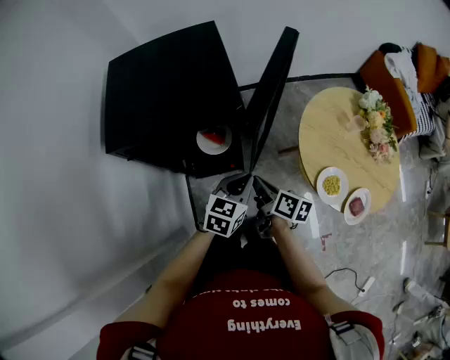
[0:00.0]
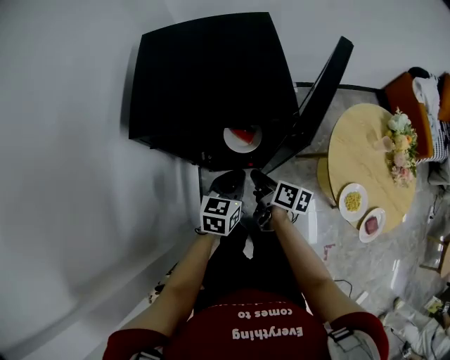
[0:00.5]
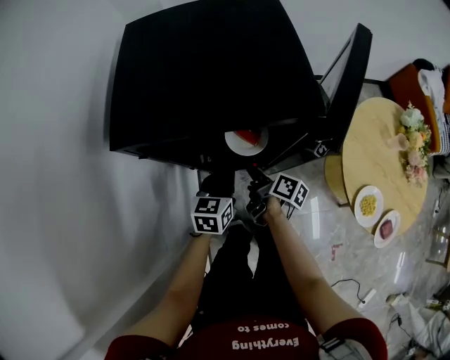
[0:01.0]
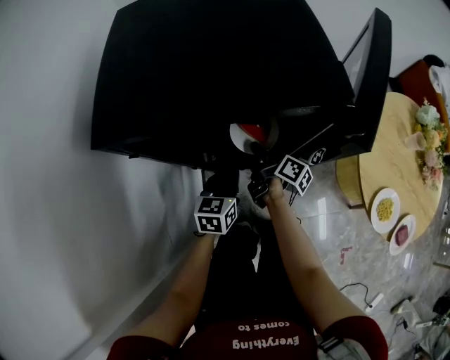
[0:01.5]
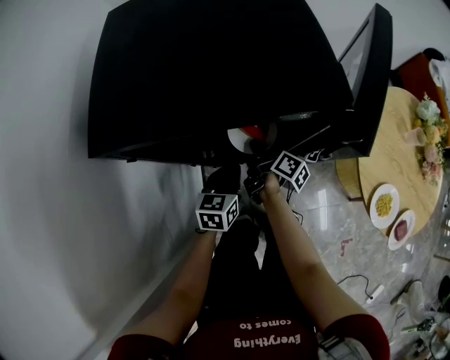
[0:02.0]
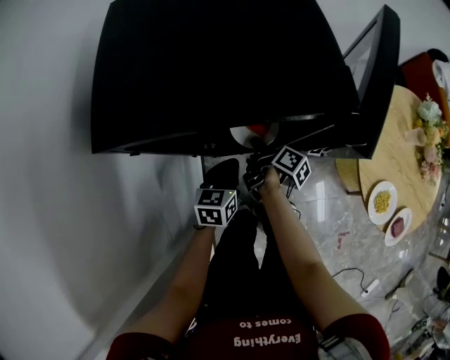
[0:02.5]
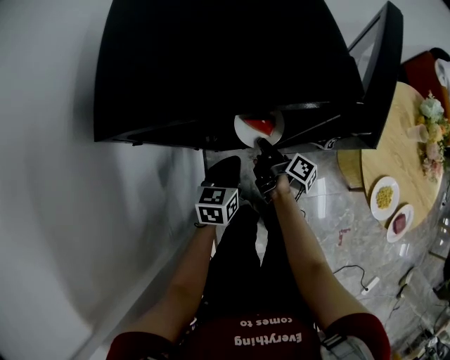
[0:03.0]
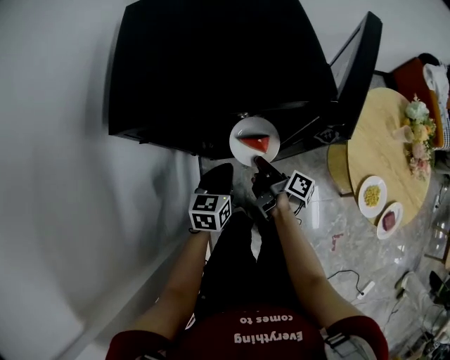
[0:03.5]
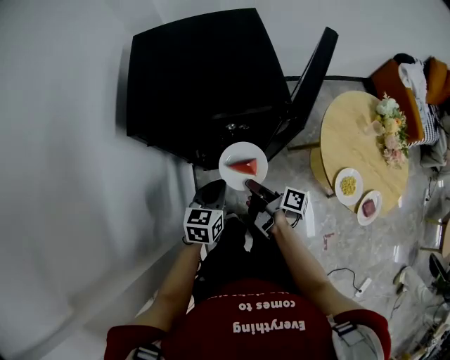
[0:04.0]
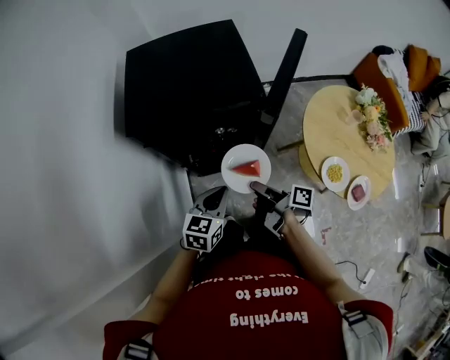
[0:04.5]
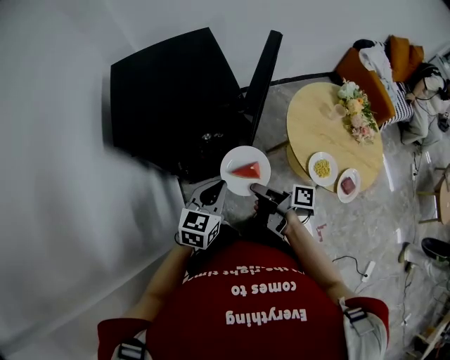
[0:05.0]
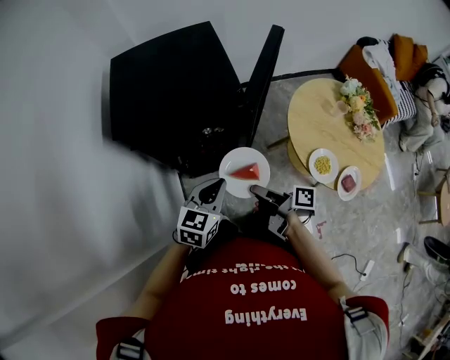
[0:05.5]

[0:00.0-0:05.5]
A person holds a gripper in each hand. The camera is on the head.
0:00.0 to 0:02.0: The left gripper moves approximately 25 cm, and changes its angle by approximately 20 degrees.
0:02.0 to 0:03.5: The left gripper travels upward by about 5 cm.
0:03.5 to 0:05.5: The left gripper goes roughly 20 cm upward, and turns by about 20 degrees.

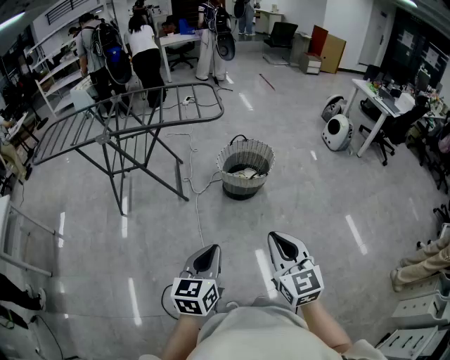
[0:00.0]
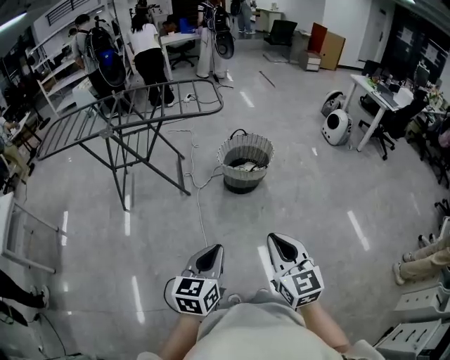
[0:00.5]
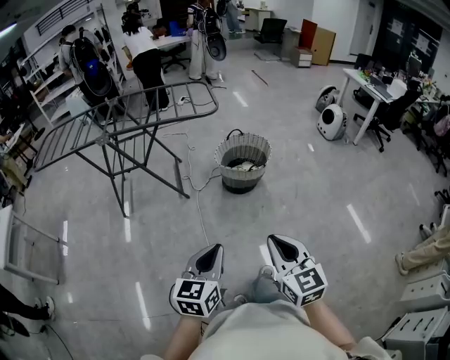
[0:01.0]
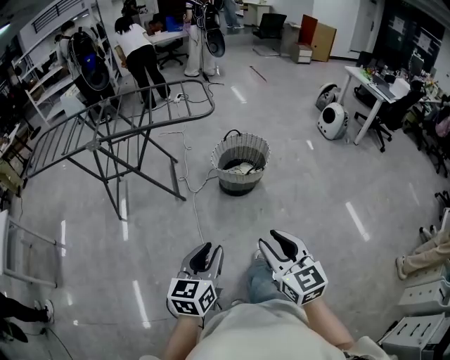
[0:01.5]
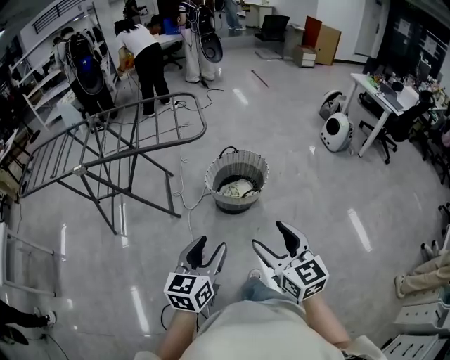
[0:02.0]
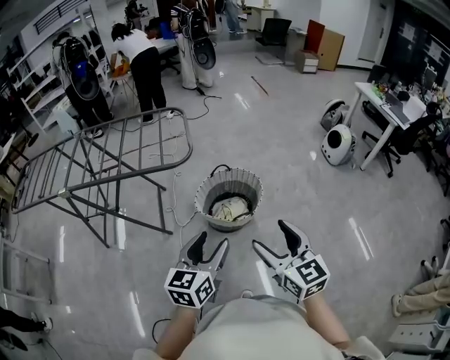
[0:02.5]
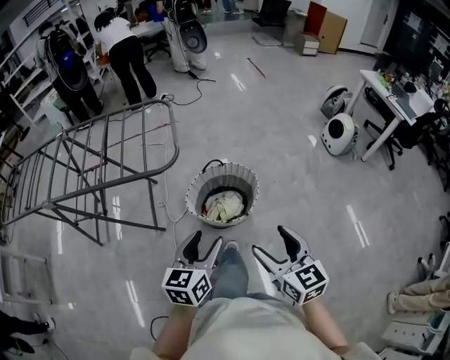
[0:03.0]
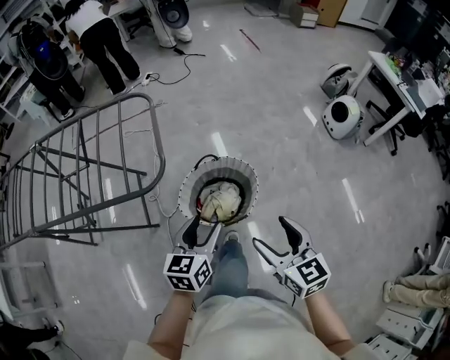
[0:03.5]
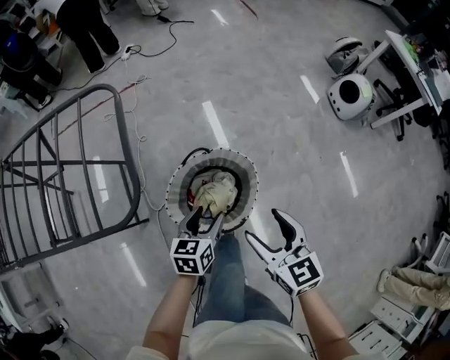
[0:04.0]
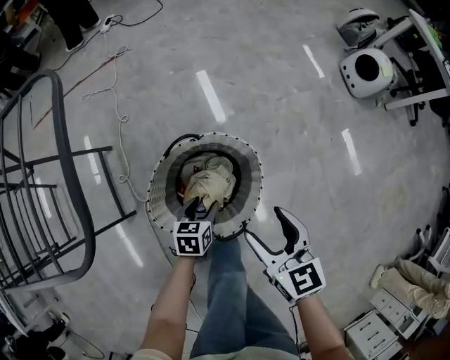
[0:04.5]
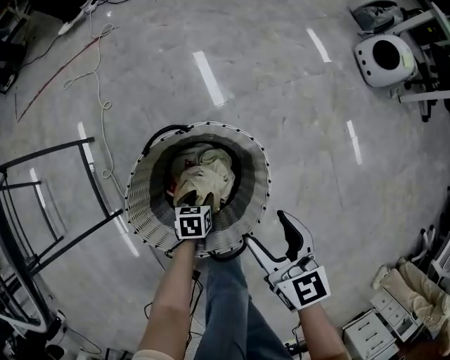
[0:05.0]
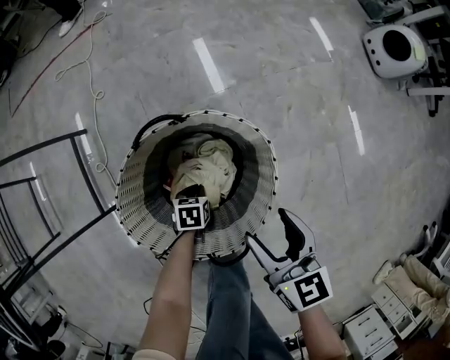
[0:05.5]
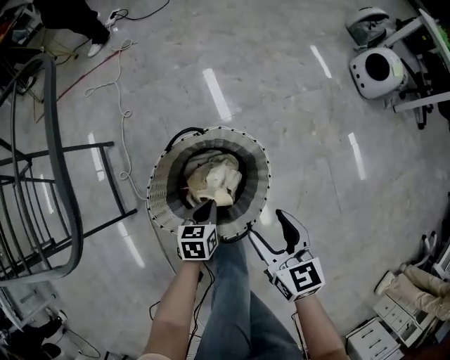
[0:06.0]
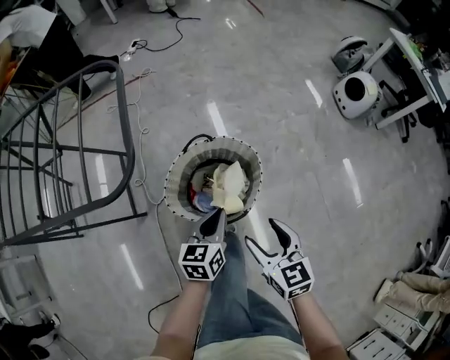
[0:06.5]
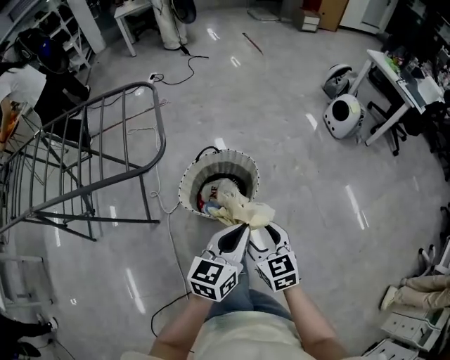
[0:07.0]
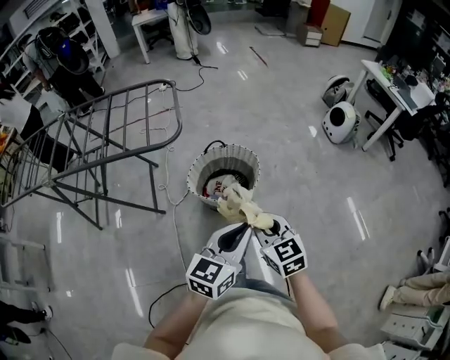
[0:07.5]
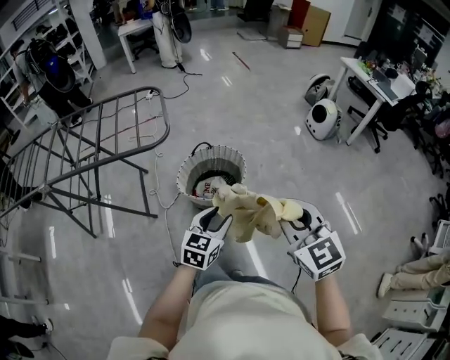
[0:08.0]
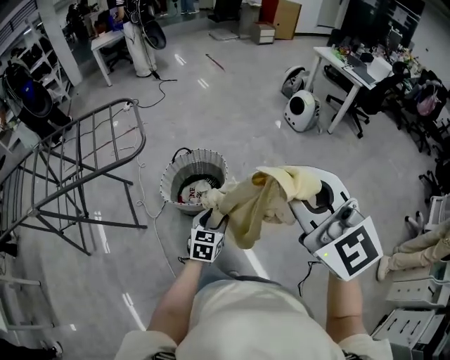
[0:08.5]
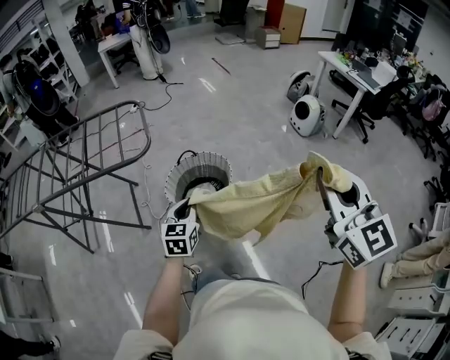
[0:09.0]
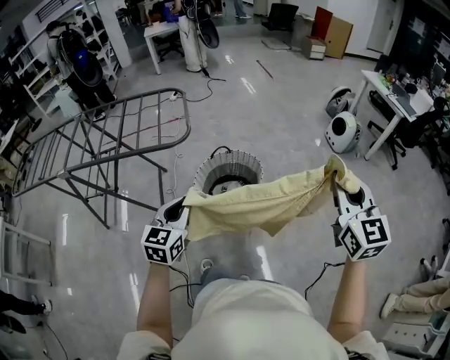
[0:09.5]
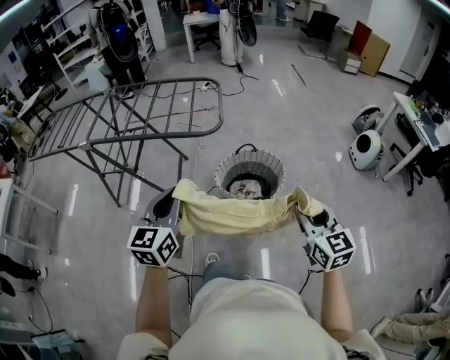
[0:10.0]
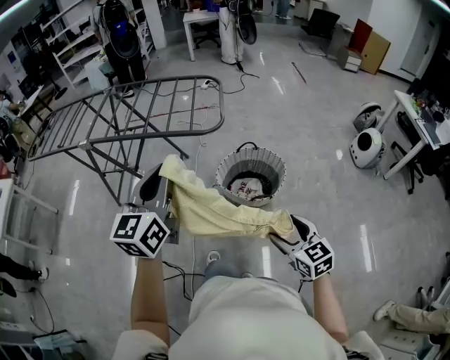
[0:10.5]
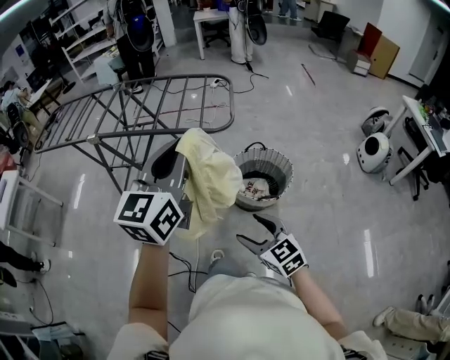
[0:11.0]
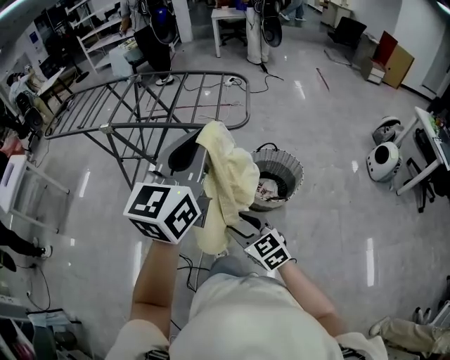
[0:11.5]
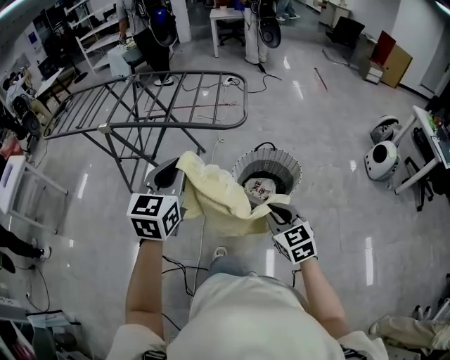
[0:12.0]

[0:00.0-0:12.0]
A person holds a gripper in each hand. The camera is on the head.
0:00.0 to 0:02.0: Both grippers move forward, roughly 20 cm. The right gripper opens up. The left gripper opens.
0:02.0 to 0:04.0: Both grippers are carried forward, approximately 50 cm. The left gripper is displaced downward by about 25 cm, and changes its angle by approximately 20 degrees.
0:04.0 to 0:06.0: Both grippers travel together downward, about 25 cm. The left gripper closes its fingers.
0:06.0 to 0:08.0: The grippers both shift upward and backward by about 50 cm. The right gripper changes its angle by about 40 degrees, and closes its fingers; the left gripper rotates some 40 degrees, and opens its fingers.
0:08.0 to 0:10.0: The left gripper shifts roughly 25 cm to the left and upward, swivels about 40 degrees, and closes. The right gripper reaches some 15 cm upward, then returns.
0:10.0 to 0:12.0: The right gripper moves to the left and downward, about 15 cm, turns by approximately 20 degrees, and opens, then closes again. The left gripper travels upward and back again, some 15 cm each way.

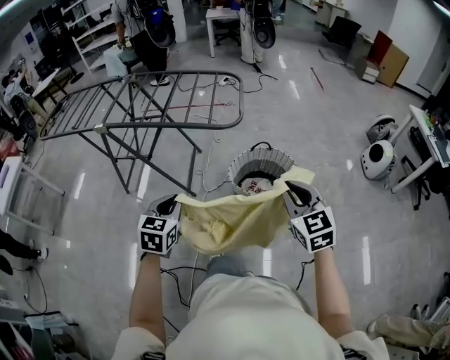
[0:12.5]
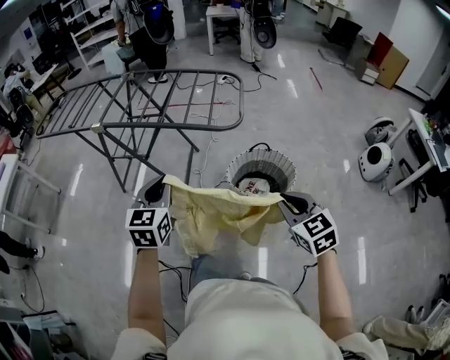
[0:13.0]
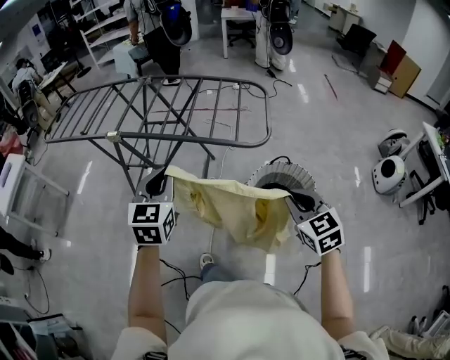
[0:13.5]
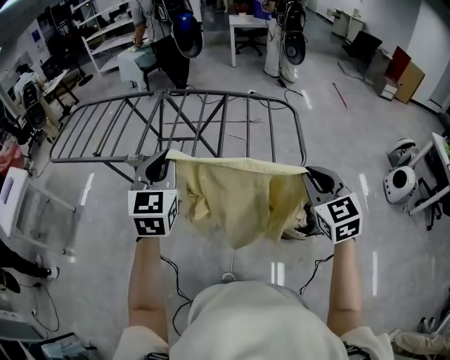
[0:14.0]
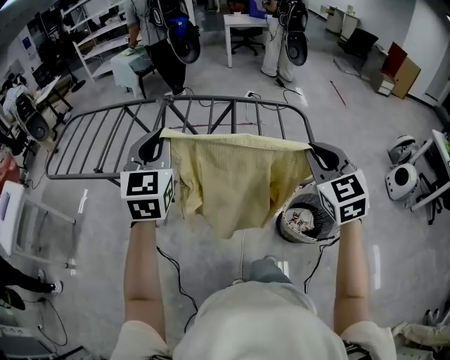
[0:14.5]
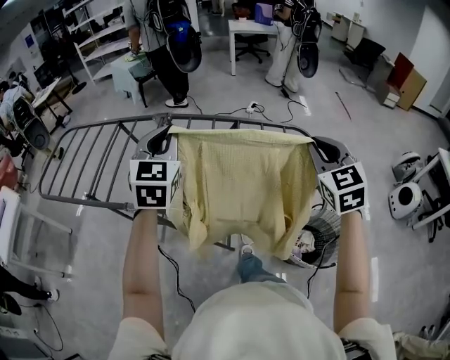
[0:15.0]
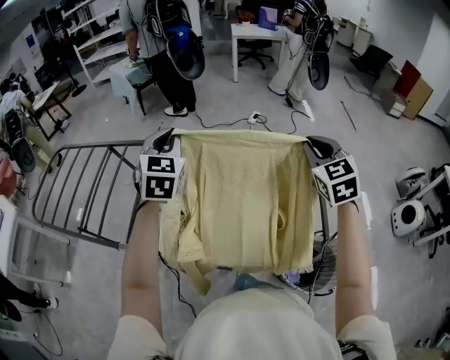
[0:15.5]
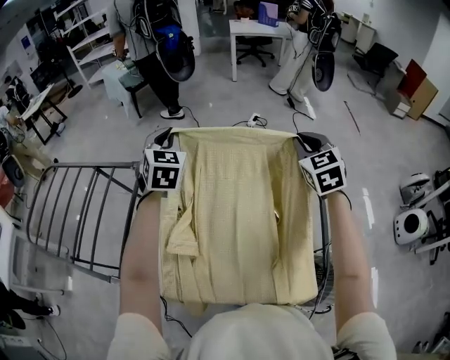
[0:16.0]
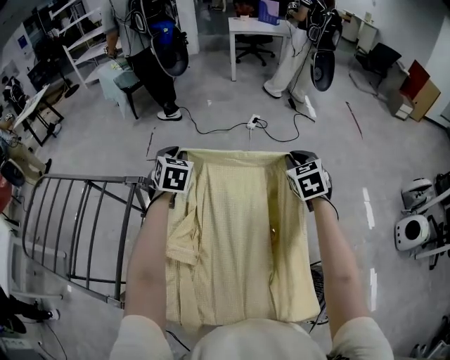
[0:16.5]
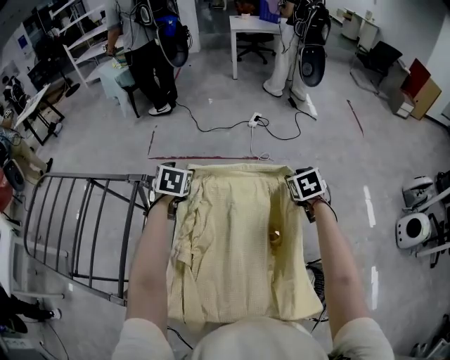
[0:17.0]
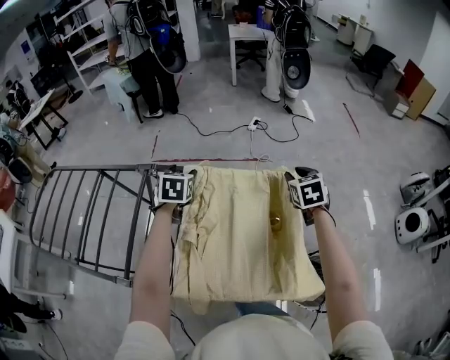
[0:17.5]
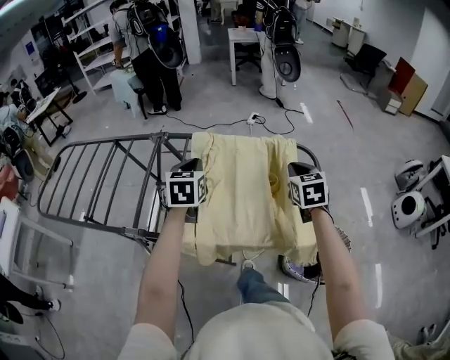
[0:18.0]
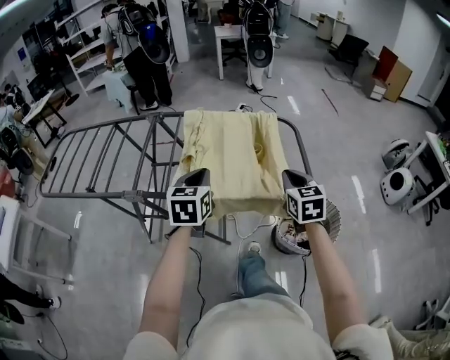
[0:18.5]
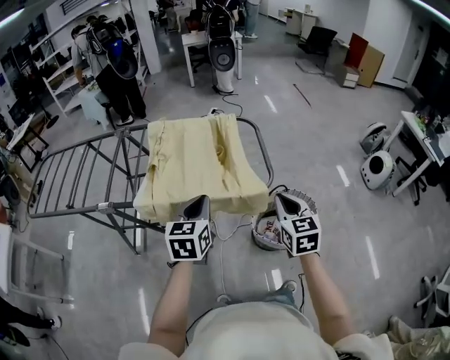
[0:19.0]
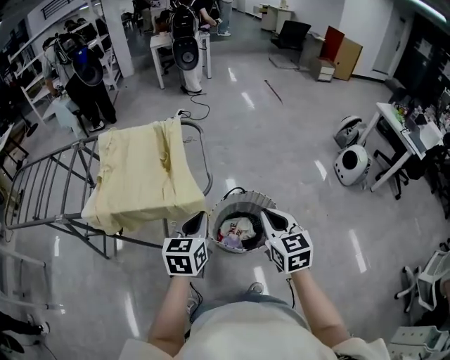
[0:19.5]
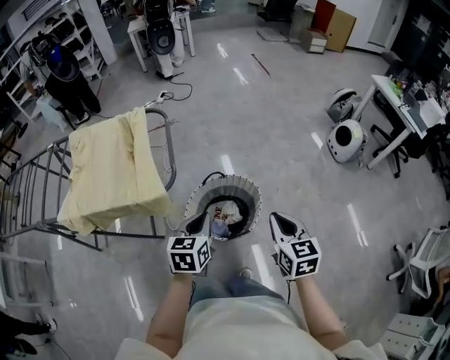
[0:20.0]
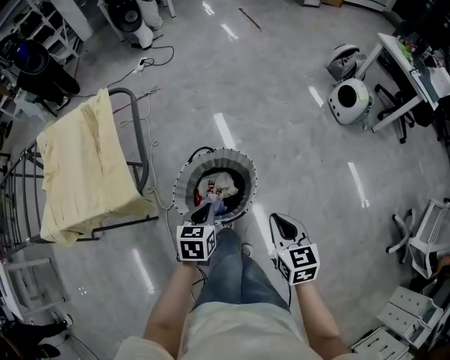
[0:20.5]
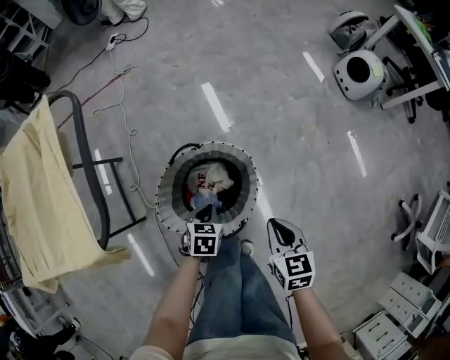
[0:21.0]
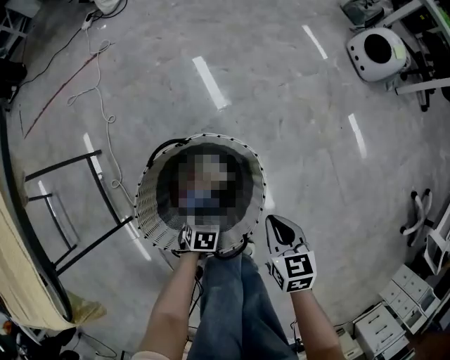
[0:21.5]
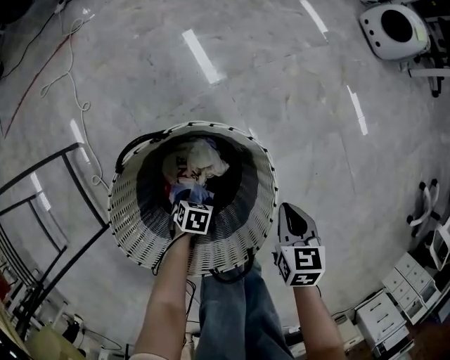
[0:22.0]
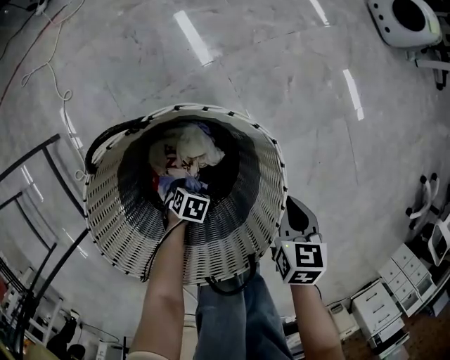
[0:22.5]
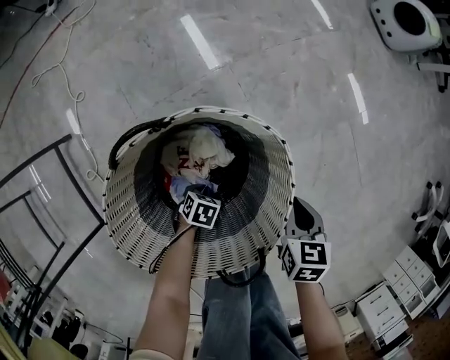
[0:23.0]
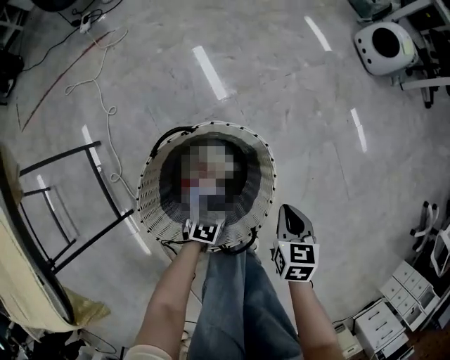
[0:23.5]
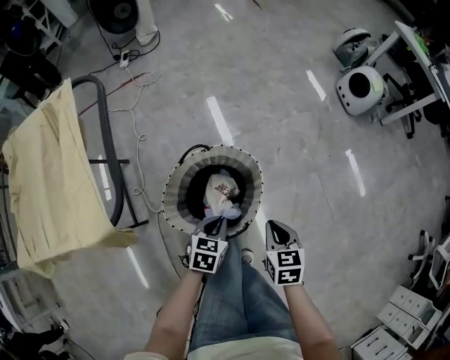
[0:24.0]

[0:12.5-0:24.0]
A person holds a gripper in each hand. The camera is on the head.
0:12.5 to 0:14.5: The pair of grippers is taken forward and to the left, about 40 cm. The left gripper shifts about 25 cm upward, and turns by roughly 30 degrees.
0:14.5 to 0:16.5: Both grippers are carried forward, about 50 cm. The left gripper changes its angle by some 30 degrees.
0:16.5 to 0:18.5: The two grippers travel together, backward, roughly 50 cm. The left gripper rotates about 30 degrees, and opens and closes again.
0:18.5 to 0:20.0: The pair of grippers is taken to the right, some 50 cm.
0:20.0 to 0:22.0: The two grippers go roughly 60 cm downward. The left gripper tips its fingers downward by some 50 degrees, and opens, while the right gripper tips its fingers downward by some 30 degrees.
0:22.0 to 0:24.0: The left gripper shifts roughly 35 cm upward, changes its angle by about 30 degrees, and closes its fingers; the right gripper goes roughly 25 cm upward.
